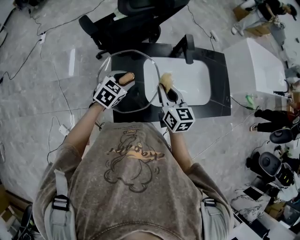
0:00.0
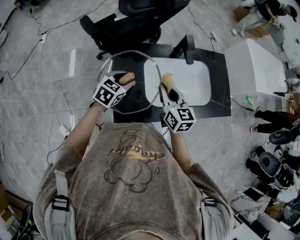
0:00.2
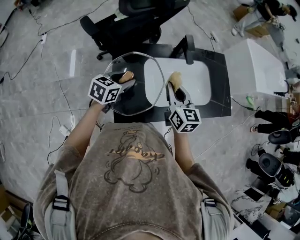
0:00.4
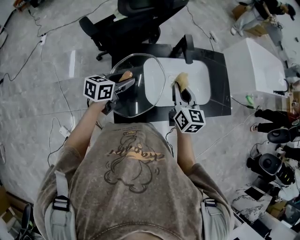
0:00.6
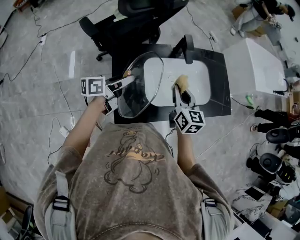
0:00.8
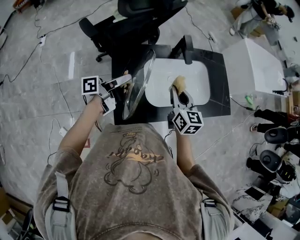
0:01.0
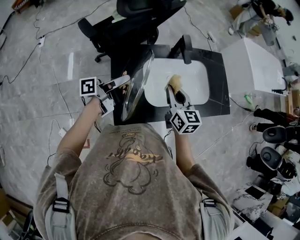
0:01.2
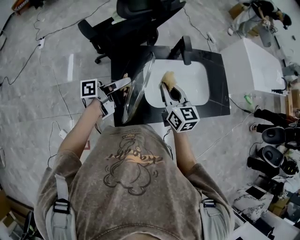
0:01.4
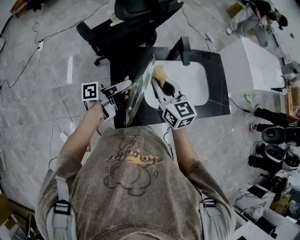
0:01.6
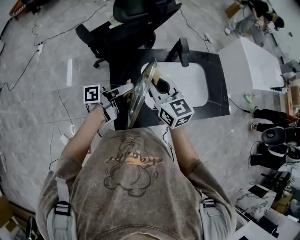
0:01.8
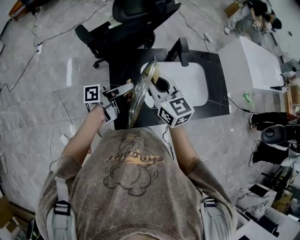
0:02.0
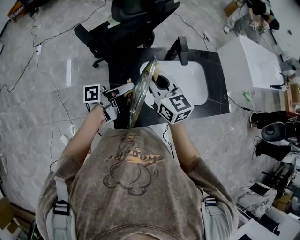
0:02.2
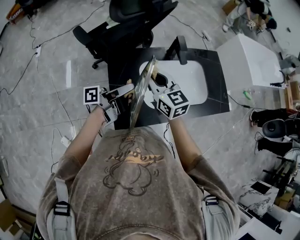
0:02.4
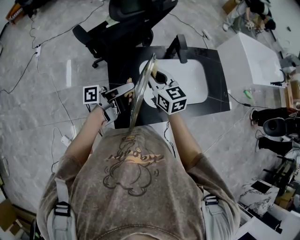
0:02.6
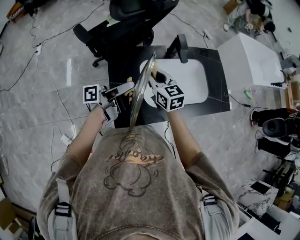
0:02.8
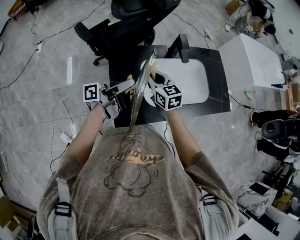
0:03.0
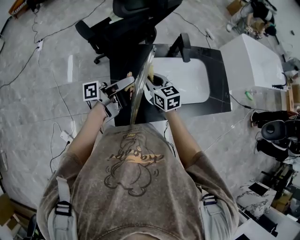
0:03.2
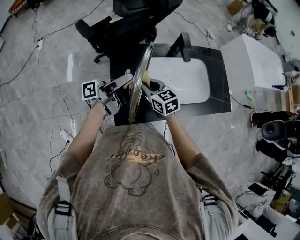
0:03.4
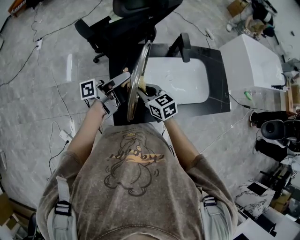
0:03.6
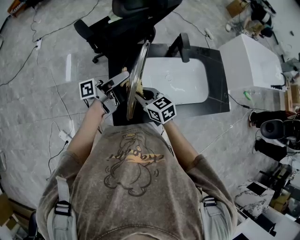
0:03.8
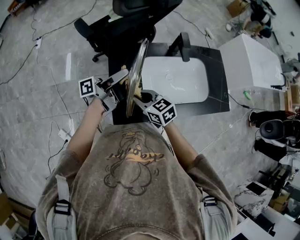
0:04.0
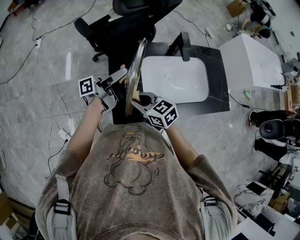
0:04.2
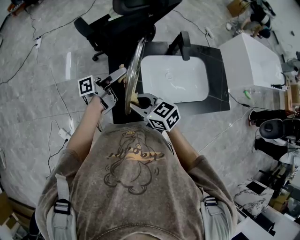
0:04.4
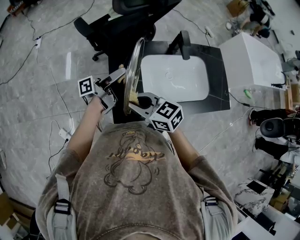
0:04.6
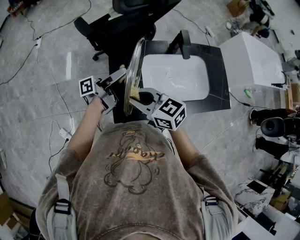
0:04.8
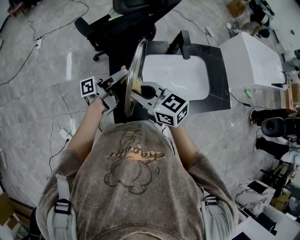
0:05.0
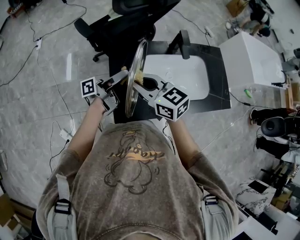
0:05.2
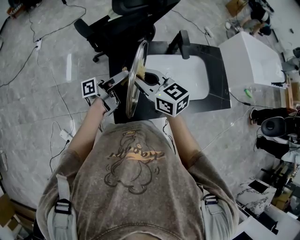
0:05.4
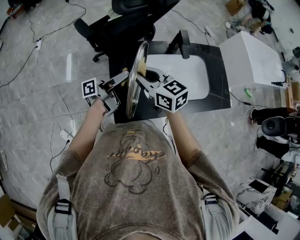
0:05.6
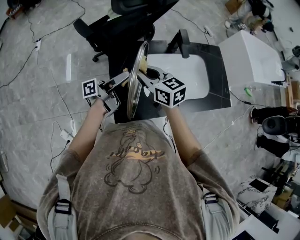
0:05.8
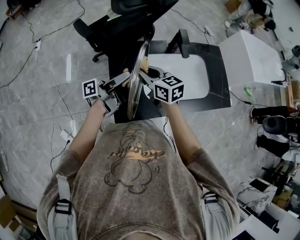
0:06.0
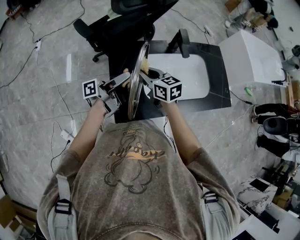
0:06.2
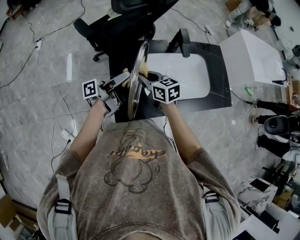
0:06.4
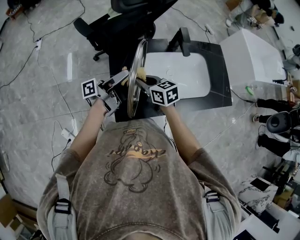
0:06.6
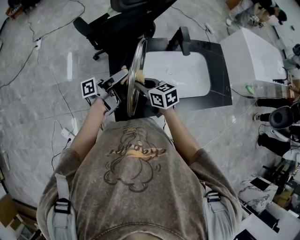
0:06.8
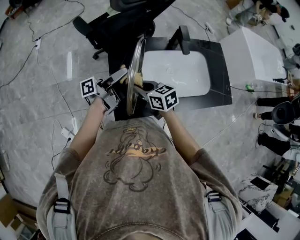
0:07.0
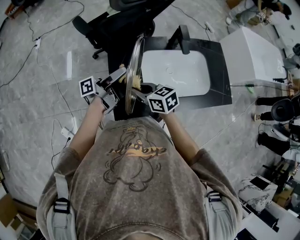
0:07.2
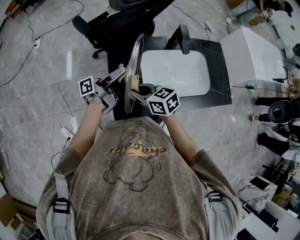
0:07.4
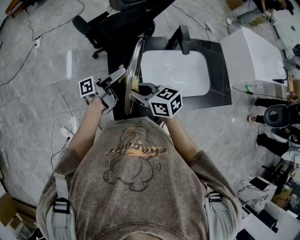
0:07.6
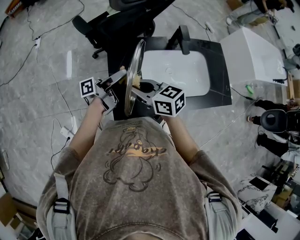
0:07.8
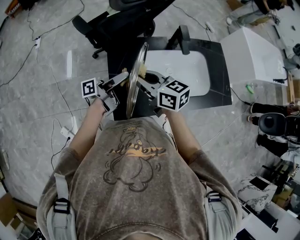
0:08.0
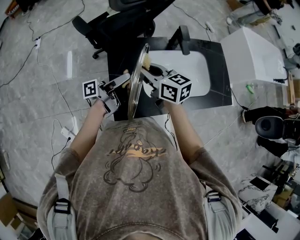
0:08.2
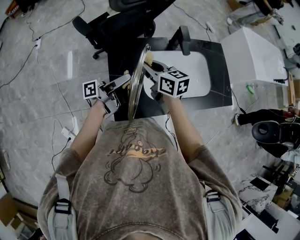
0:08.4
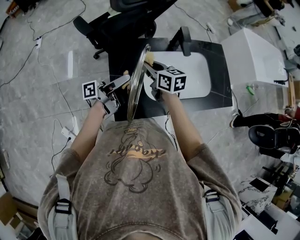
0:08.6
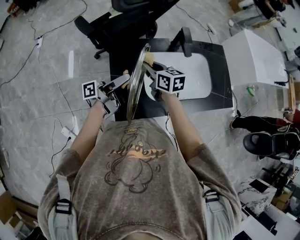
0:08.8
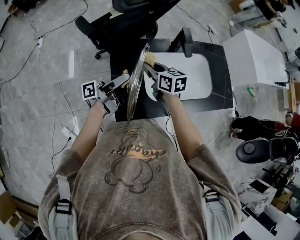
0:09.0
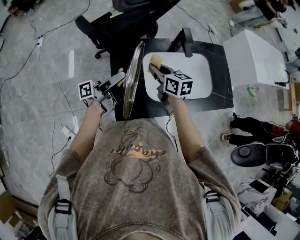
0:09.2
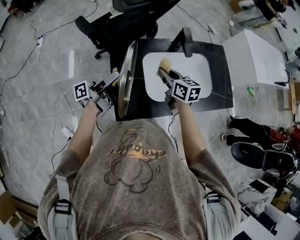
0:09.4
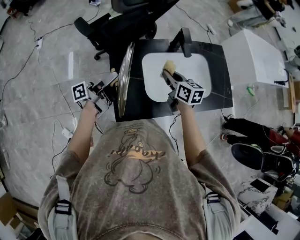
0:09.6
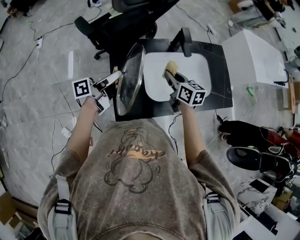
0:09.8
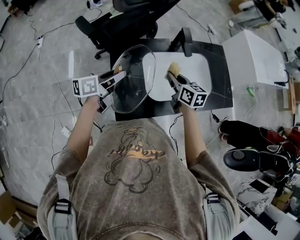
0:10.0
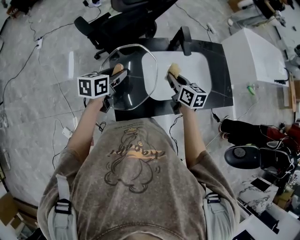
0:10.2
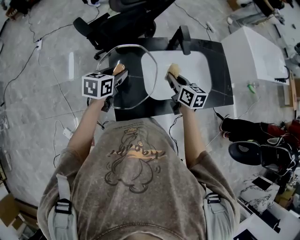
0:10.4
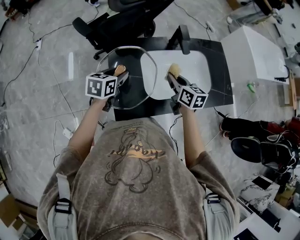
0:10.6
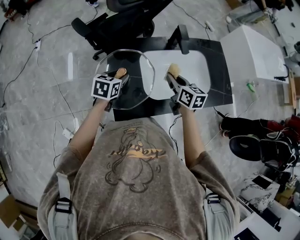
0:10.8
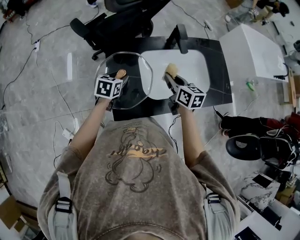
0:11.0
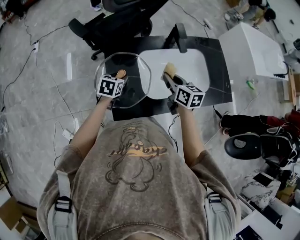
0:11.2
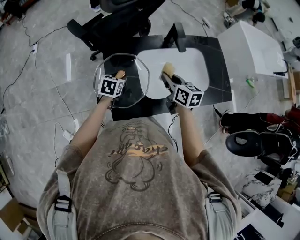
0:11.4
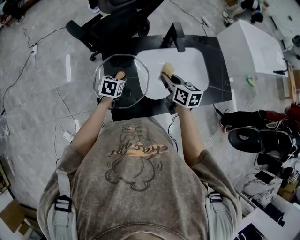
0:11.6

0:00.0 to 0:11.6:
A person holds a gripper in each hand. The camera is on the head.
0:00.0 to 0:01.4: The left gripper is displaced upward by approximately 10 cm, and rotates around the line of its fingers by about 70 degrees, counterclockwise from behind.
0:01.4 to 0:02.8: The right gripper heads to the left, covering about 5 cm, and goes upward and returns, some 5 cm each way.
0:02.8 to 0:04.4: The right gripper travels backward and to the left by some 15 cm, and rotates some 30 degrees, while the left gripper shifts by some 5 cm.
0:04.4 to 0:05.8: The right gripper moves forward, about 10 cm, and changes its angle by some 20 degrees.
0:05.8 to 0:07.2: The right gripper goes approximately 10 cm downward and backward.
0:07.2 to 0:08.8: The right gripper shifts roughly 10 cm forward.
0:08.8 to 0:10.2: The left gripper shifts by roughly 5 cm, and angles its fingers downward, by roughly 50 degrees. Meanwhile the right gripper is displaced to the right by roughly 10 cm.
0:10.2 to 0:11.6: The left gripper is displaced downward by roughly 15 cm, and rotates about 30 degrees.

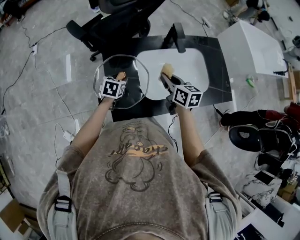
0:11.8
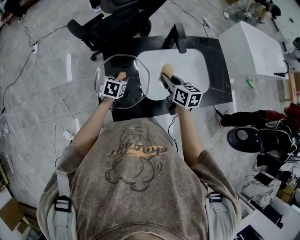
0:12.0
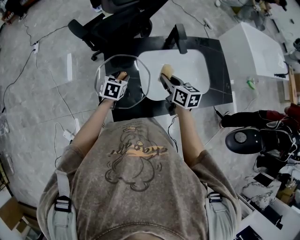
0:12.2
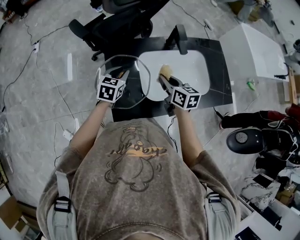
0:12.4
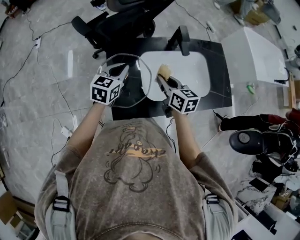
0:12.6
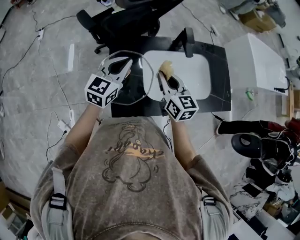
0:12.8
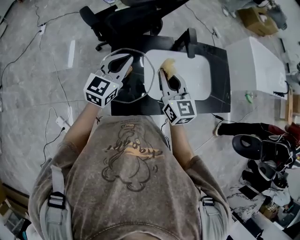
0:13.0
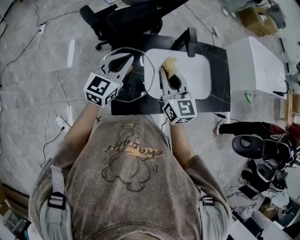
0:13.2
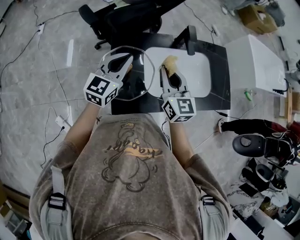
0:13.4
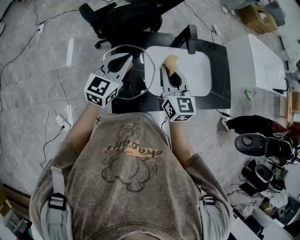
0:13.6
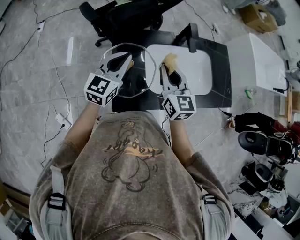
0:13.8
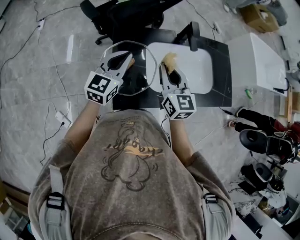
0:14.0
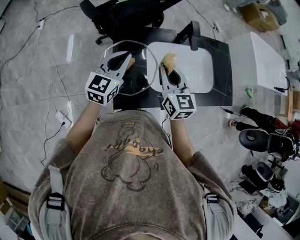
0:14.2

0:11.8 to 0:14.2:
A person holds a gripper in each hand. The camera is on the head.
0:11.8 to 0:13.0: The right gripper travels upward and to the left by roughly 10 cm, and changes its angle by roughly 30 degrees; the left gripper heads upward, covering about 20 cm, angles its fingers upward, by approximately 40 degrees, and closes up.
0:13.0 to 0:14.2: The grippers stay close to where they were, moving slightly.

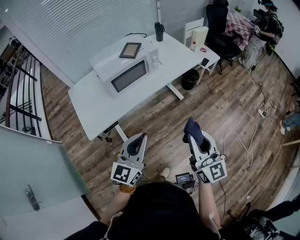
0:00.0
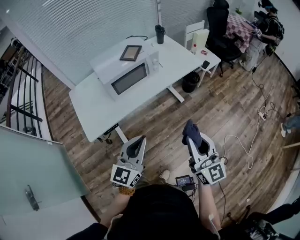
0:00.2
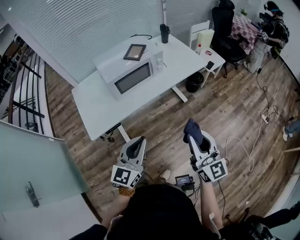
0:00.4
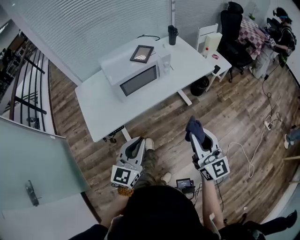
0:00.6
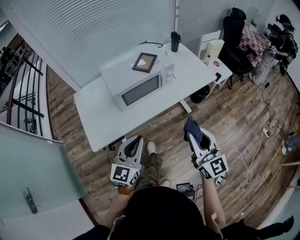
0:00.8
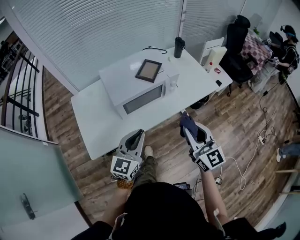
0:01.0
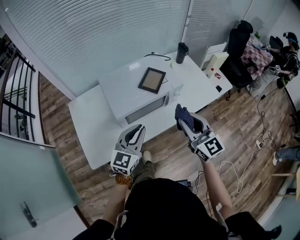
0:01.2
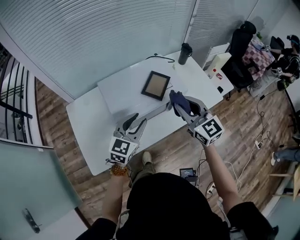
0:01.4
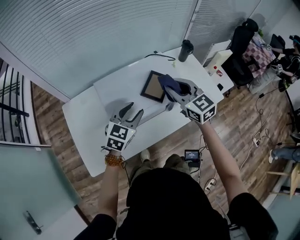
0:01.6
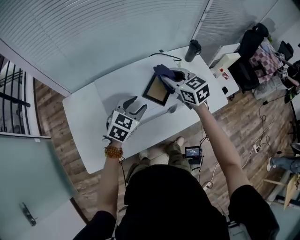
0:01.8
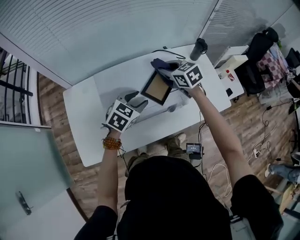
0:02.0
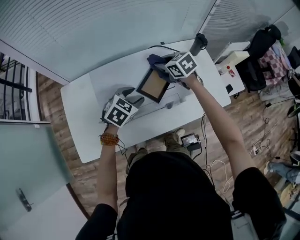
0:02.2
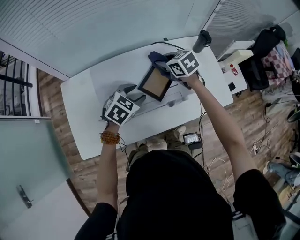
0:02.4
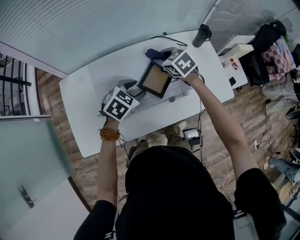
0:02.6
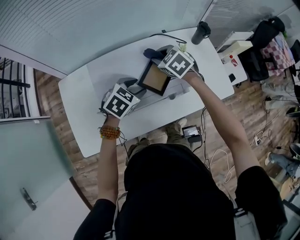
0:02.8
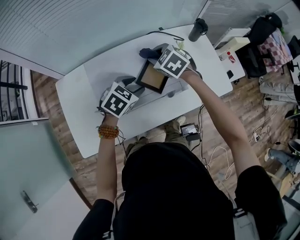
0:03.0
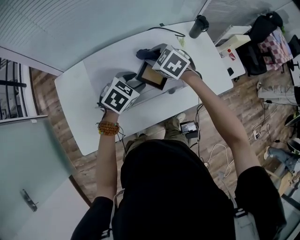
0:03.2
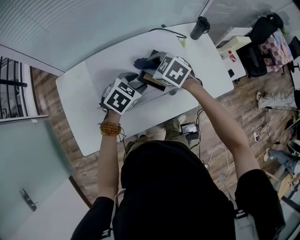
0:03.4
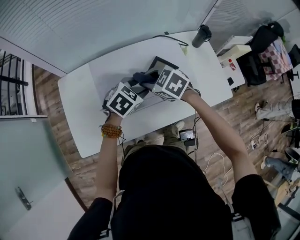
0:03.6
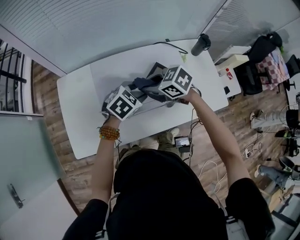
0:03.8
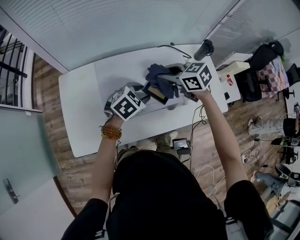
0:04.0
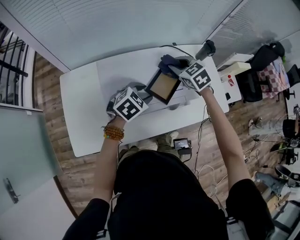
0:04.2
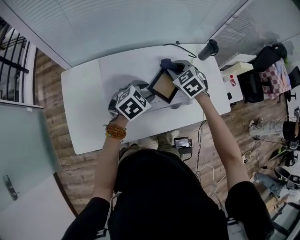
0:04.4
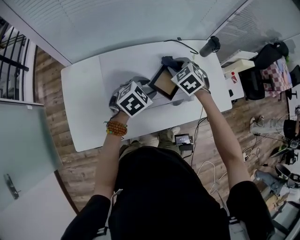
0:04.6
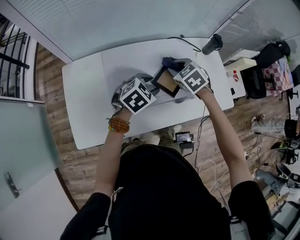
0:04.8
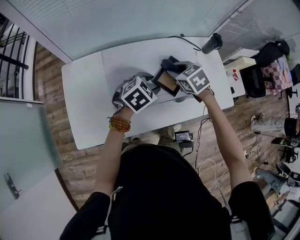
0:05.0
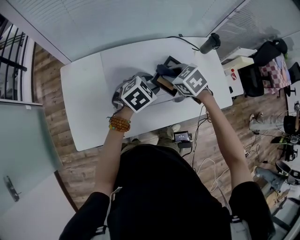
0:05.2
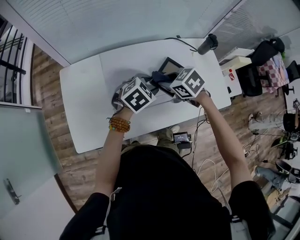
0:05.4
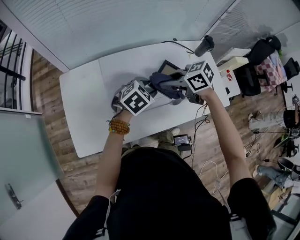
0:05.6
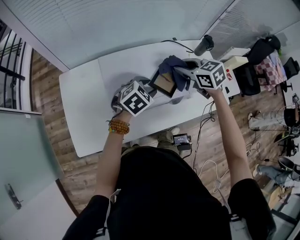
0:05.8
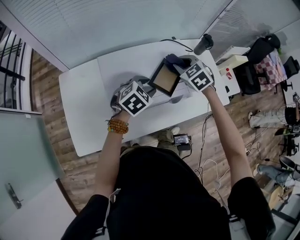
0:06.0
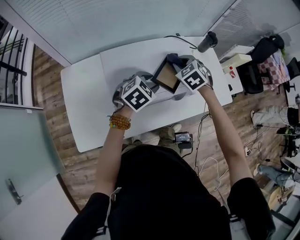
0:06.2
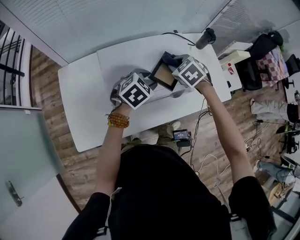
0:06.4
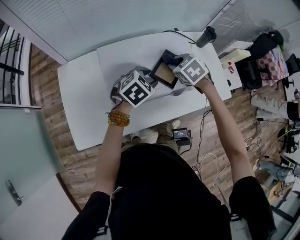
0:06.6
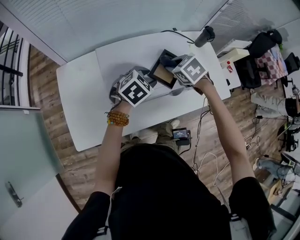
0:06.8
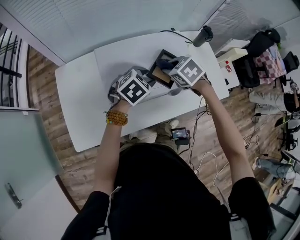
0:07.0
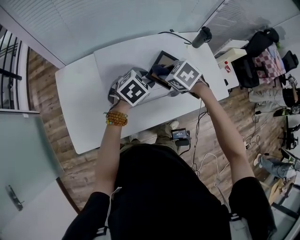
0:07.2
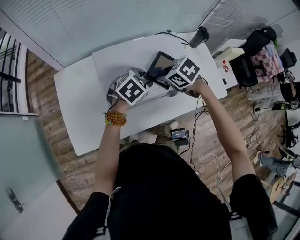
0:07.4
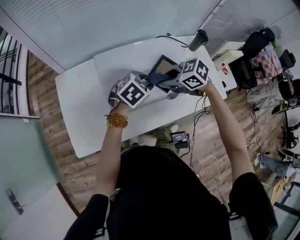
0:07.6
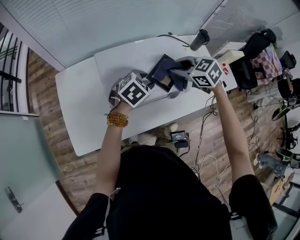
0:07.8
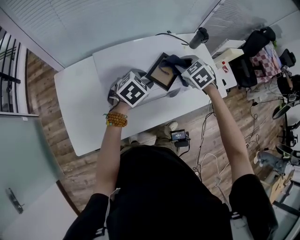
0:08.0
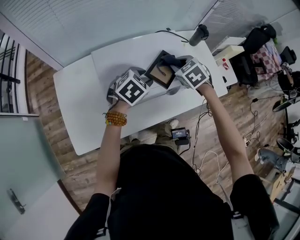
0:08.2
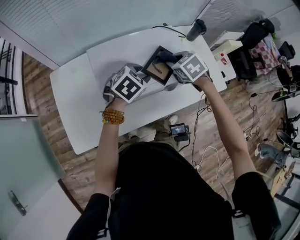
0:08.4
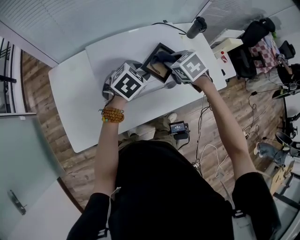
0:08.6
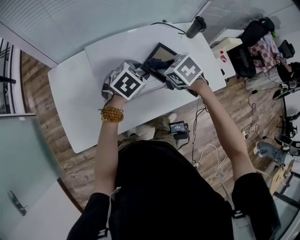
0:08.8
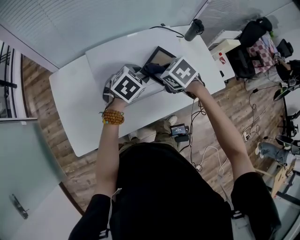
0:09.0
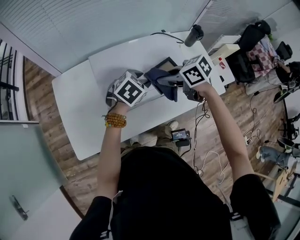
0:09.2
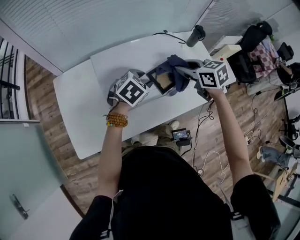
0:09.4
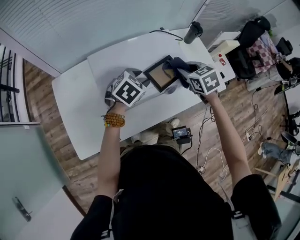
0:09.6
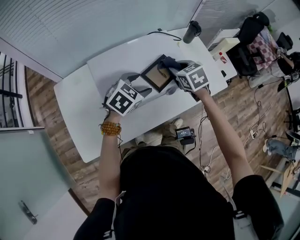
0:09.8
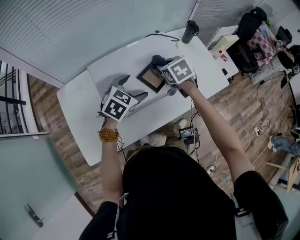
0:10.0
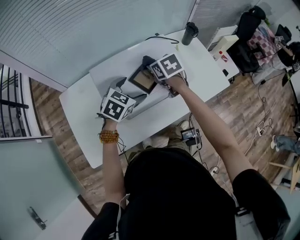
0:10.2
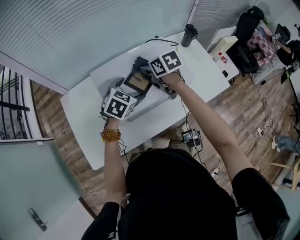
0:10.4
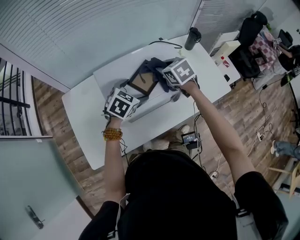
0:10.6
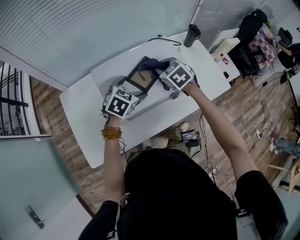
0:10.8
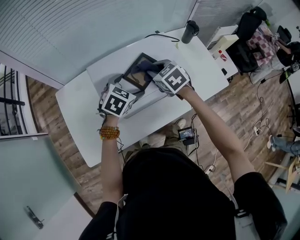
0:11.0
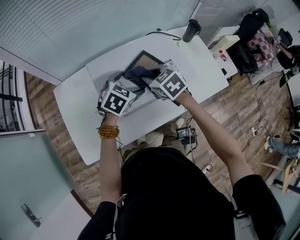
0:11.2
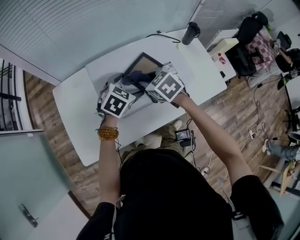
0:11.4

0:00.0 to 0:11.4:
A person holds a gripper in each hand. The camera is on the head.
0:00.0 to 0:01.4: Both grippers move forward, some 40 cm. The right gripper swivels roughly 30 degrees.
0:01.4 to 0:02.8: The left gripper is displaced forward and downward by approximately 15 cm, and tilts its fingers roughly 30 degrees downward, while the right gripper moves forward and downward, some 30 cm, and tilts its fingers about 40 degrees downward.
0:04.2 to 0:05.6: The right gripper changes place by approximately 15 cm, and turns by roughly 40 degrees.
0:05.6 to 0:07.2: The right gripper rotates about 40 degrees.
0:08.6 to 0:10.0: The left gripper opens up.
0:10.0 to 0:11.4: The right gripper moves left and right over approximately 10 cm, changing direction 2 times, and turns by approximately 20 degrees.
